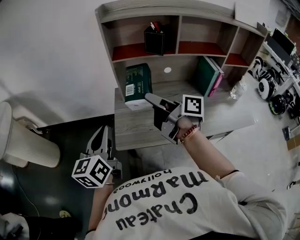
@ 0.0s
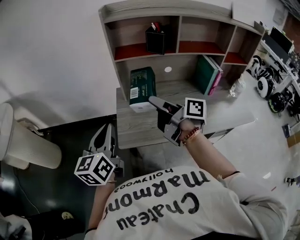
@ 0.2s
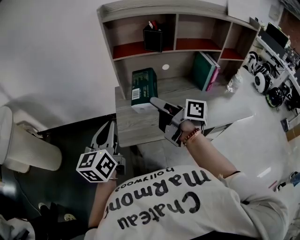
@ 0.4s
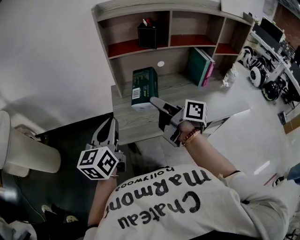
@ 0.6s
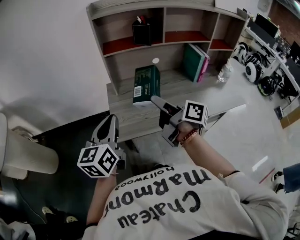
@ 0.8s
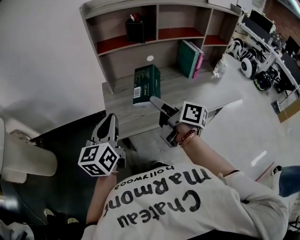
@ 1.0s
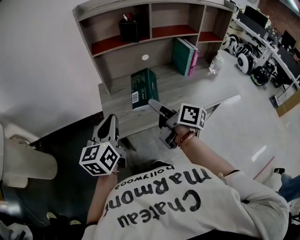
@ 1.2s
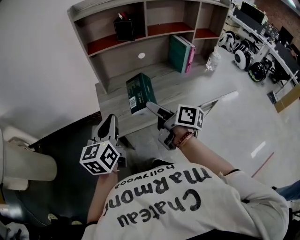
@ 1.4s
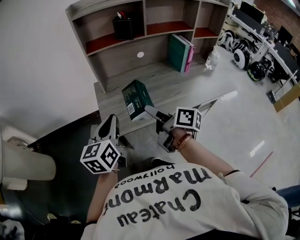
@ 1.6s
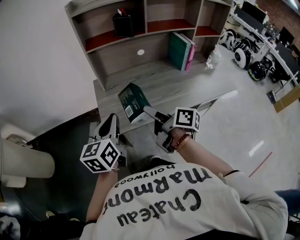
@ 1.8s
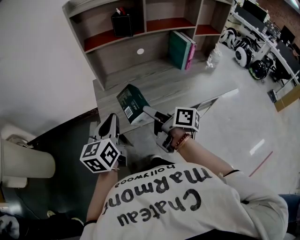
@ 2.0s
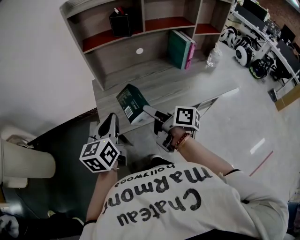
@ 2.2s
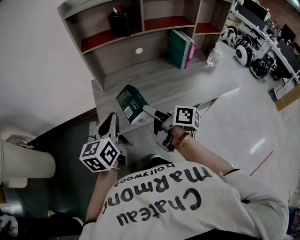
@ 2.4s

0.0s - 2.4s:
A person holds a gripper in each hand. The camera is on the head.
0.0s - 1.2s: The left gripper is displaced backward by about 5 cm. Meanwhile the right gripper travels backward and downward by approximately 15 cm, and swivels some 30 degrees.
1.2s - 2.4s: The right gripper shifts roughly 5 cm downward.

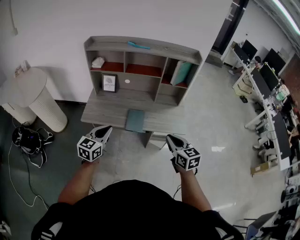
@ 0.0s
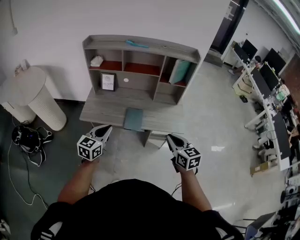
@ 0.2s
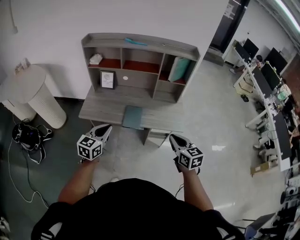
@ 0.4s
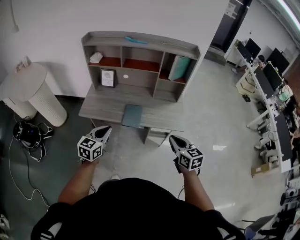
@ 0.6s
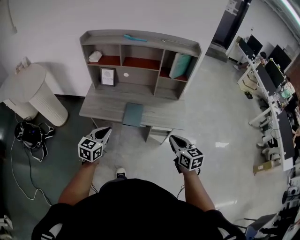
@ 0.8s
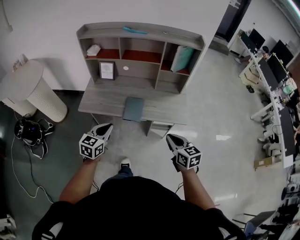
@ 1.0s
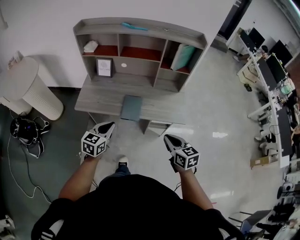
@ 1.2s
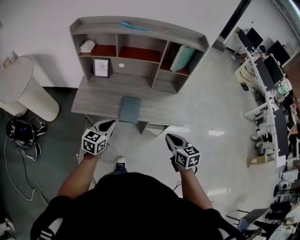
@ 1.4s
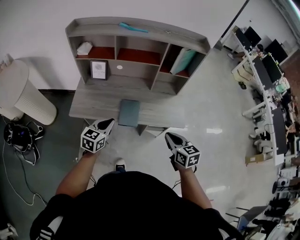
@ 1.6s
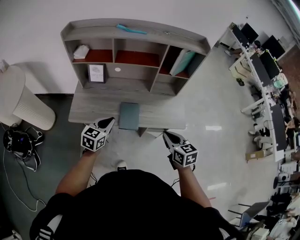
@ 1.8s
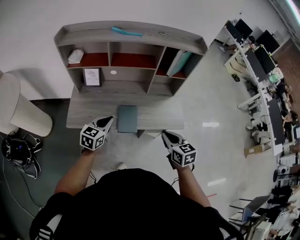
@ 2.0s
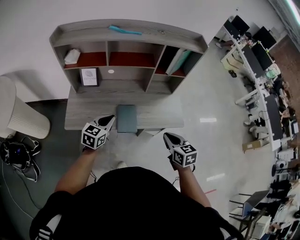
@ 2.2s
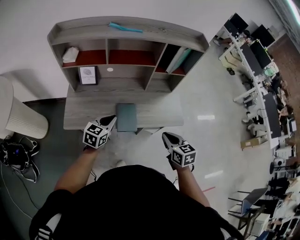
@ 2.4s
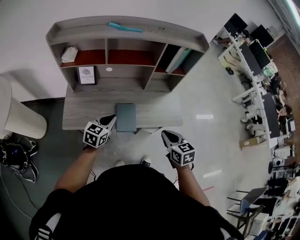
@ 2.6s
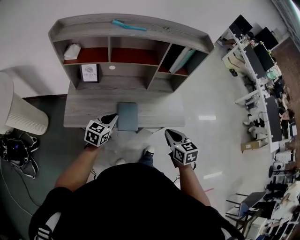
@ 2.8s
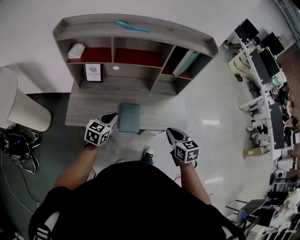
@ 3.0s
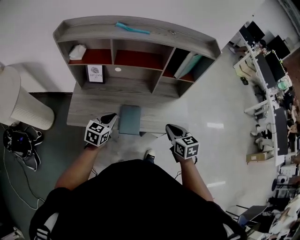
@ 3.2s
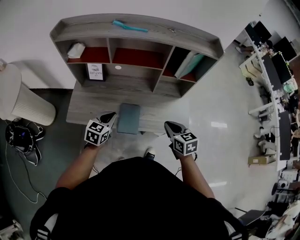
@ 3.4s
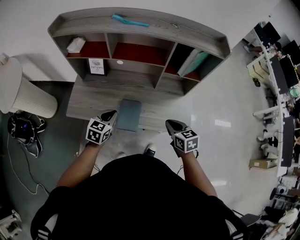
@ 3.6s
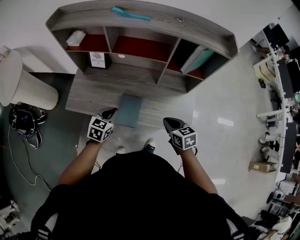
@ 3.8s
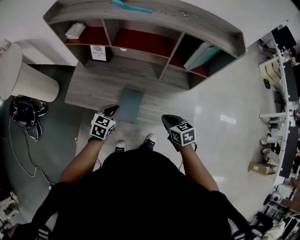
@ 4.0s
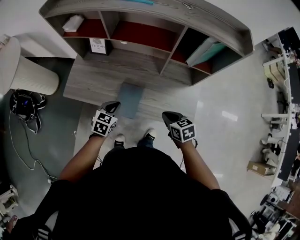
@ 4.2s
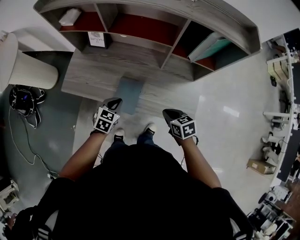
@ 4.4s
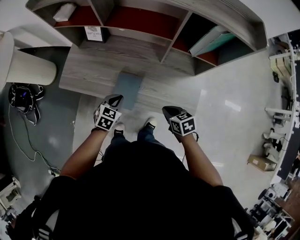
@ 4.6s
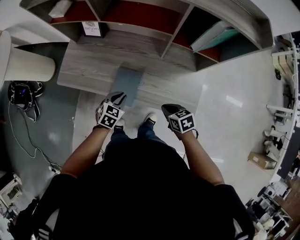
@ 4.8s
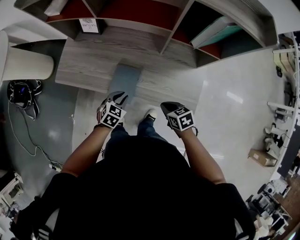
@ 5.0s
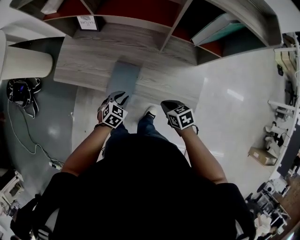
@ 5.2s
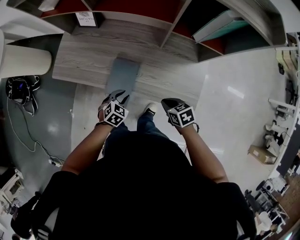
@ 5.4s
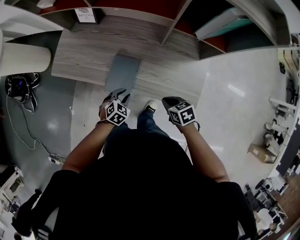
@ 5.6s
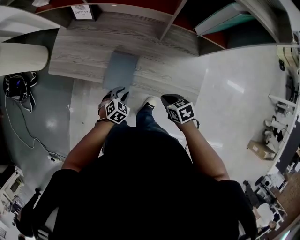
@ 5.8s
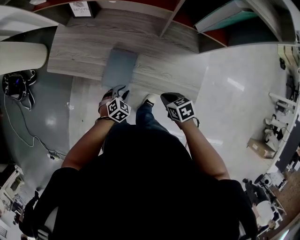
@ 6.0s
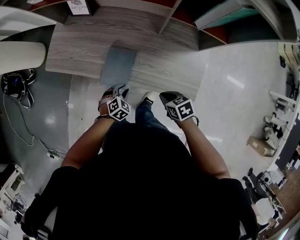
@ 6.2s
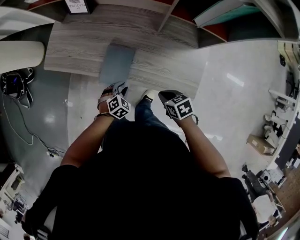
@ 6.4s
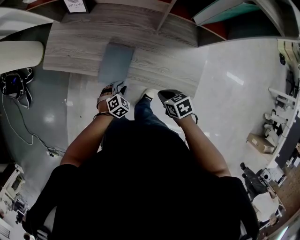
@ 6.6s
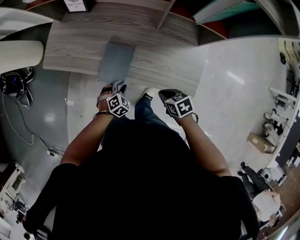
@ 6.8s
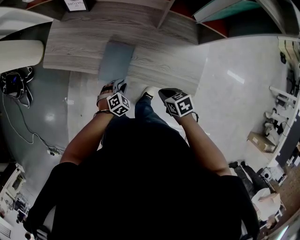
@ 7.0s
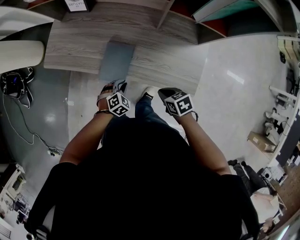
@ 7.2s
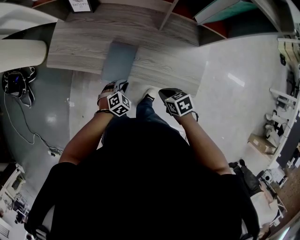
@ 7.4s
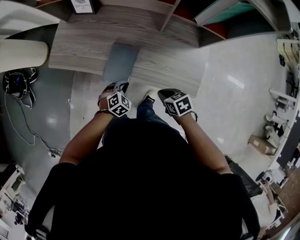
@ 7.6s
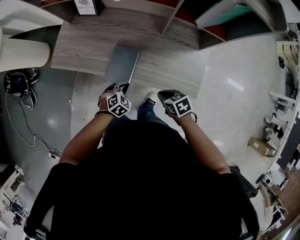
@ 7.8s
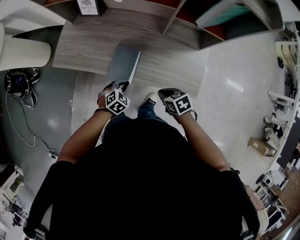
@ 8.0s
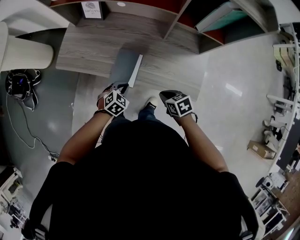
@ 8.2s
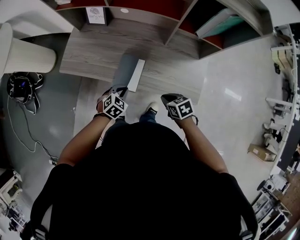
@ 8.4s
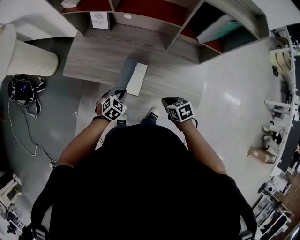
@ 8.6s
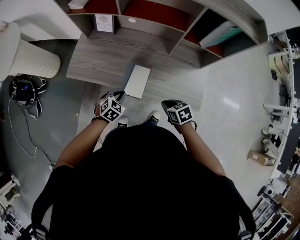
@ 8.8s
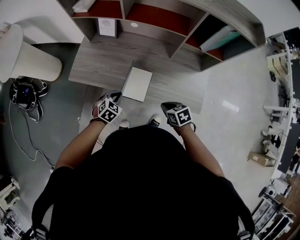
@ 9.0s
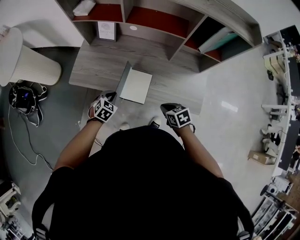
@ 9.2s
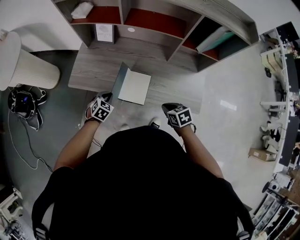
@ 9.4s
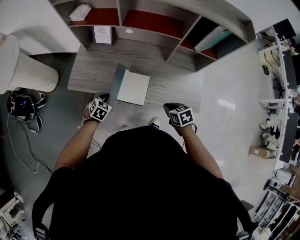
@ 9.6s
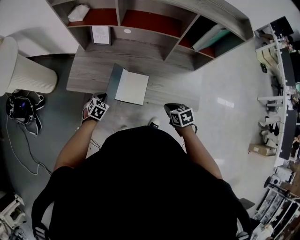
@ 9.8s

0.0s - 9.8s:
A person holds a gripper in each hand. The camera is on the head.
0.0s - 1.4s: The right gripper goes roughly 10 cm downward. Meanwhile the left gripper moves downward and forward, some 10 cm.
1.4s - 2.8s: The right gripper is displaced forward and to the left by about 10 cm. Meanwhile the left gripper moves forward, approximately 15 cm.
2.8s - 4.2s: The left gripper travels downward by approximately 10 cm, and rotates about 20 degrees, while the right gripper changes place by about 20 cm, and turns by about 30 degrees.
4.2s - 5.6s: The left gripper shifts approximately 15 cm downward and backward, rotates approximately 20 degrees, and opens up, while the right gripper moves downward, approximately 10 cm.
5.6s - 7.0s: The left gripper is displaced downward by roughly 5 cm.
7.0s - 8.4s: The right gripper is displaced upward by about 5 cm, while the left gripper heads upward, covering roughly 10 cm.
8.4s - 9.8s: The left gripper heads to the left and forward, covering roughly 20 cm.

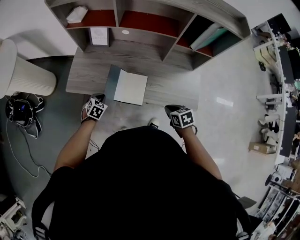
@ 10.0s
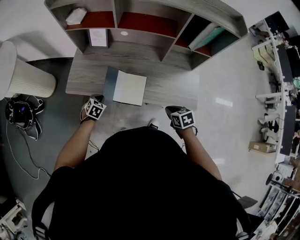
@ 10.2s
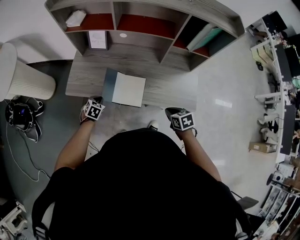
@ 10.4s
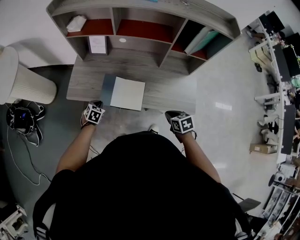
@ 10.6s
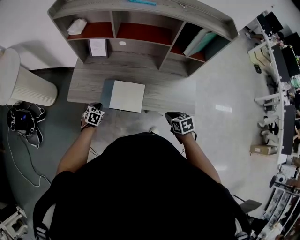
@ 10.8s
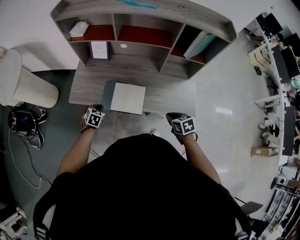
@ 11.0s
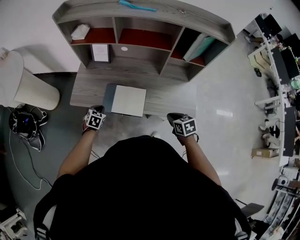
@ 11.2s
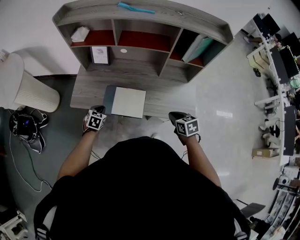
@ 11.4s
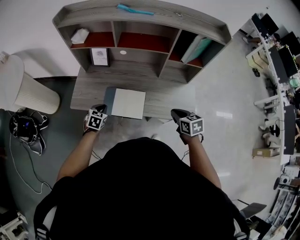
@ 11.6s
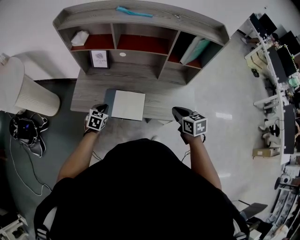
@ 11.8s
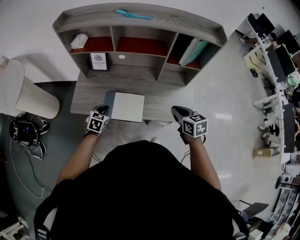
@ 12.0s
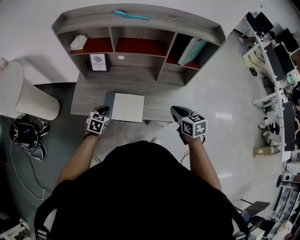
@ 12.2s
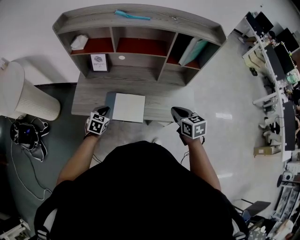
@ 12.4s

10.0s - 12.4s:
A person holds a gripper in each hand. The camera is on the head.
10.0s - 11.2s: The grippers make only small movements.
11.2s - 12.4s: The grippers both shift upward by about 10 cm.

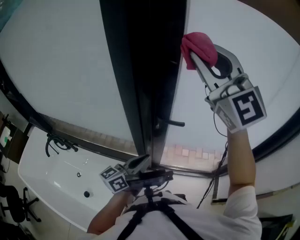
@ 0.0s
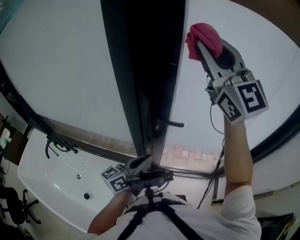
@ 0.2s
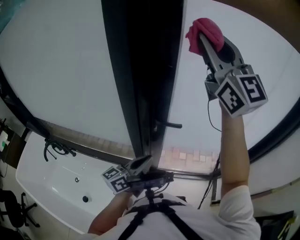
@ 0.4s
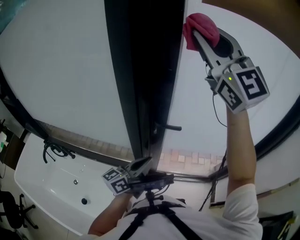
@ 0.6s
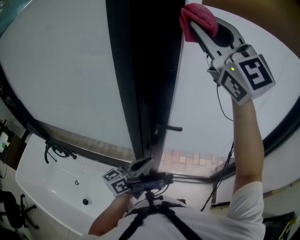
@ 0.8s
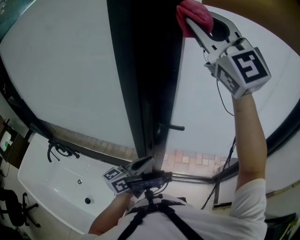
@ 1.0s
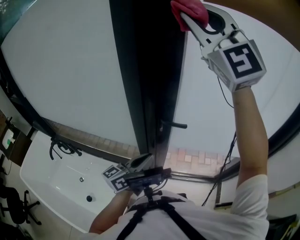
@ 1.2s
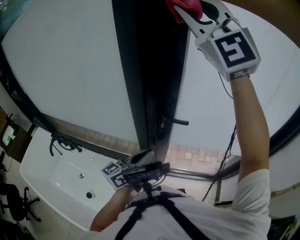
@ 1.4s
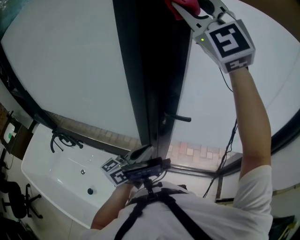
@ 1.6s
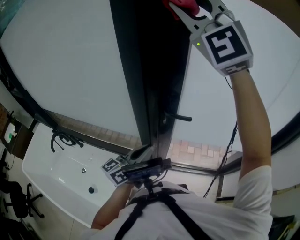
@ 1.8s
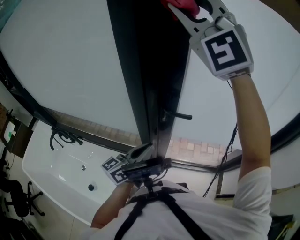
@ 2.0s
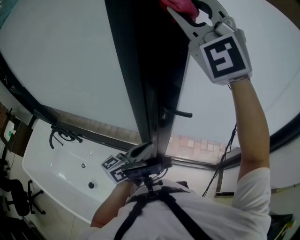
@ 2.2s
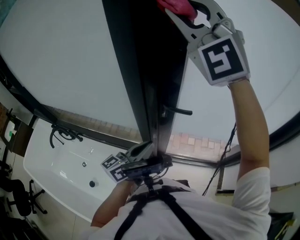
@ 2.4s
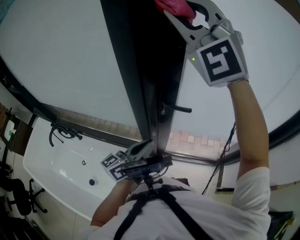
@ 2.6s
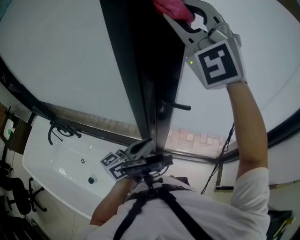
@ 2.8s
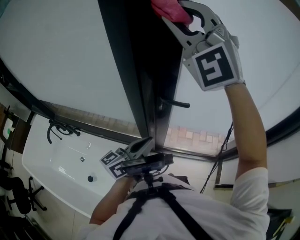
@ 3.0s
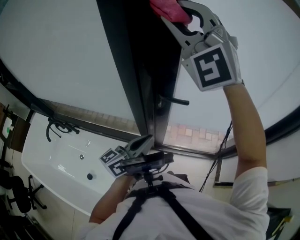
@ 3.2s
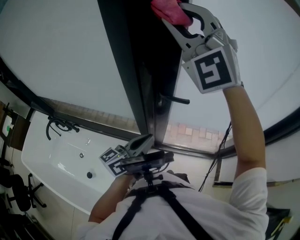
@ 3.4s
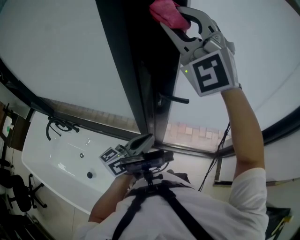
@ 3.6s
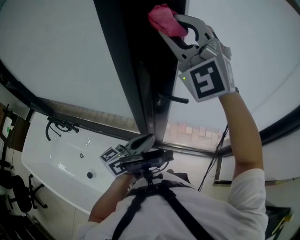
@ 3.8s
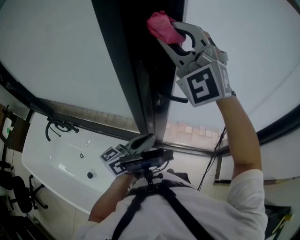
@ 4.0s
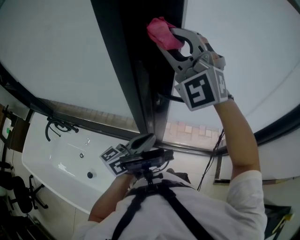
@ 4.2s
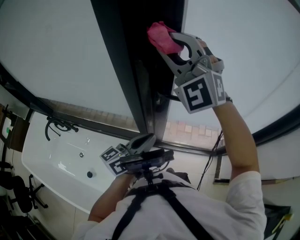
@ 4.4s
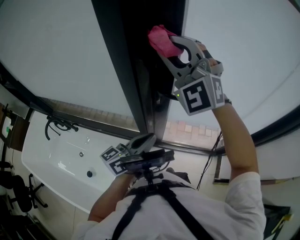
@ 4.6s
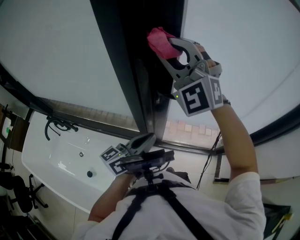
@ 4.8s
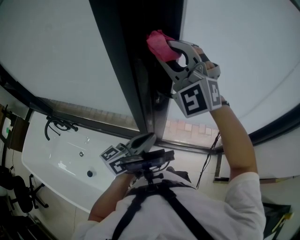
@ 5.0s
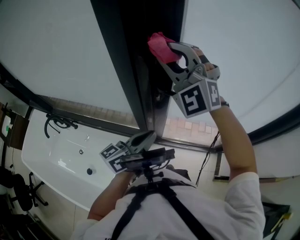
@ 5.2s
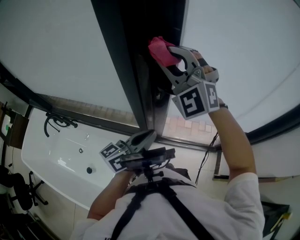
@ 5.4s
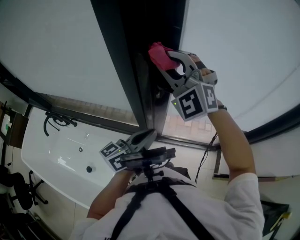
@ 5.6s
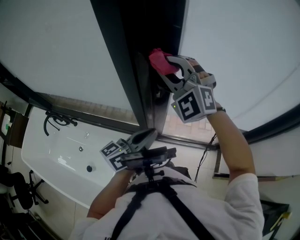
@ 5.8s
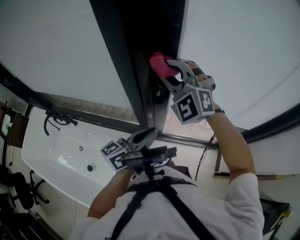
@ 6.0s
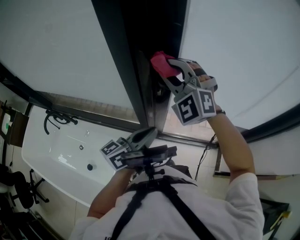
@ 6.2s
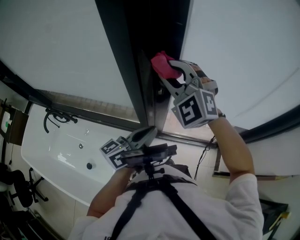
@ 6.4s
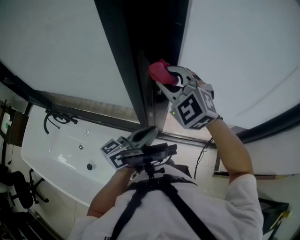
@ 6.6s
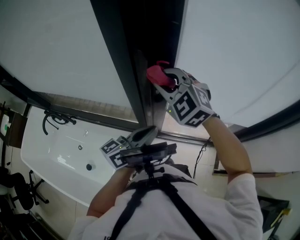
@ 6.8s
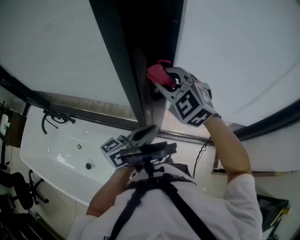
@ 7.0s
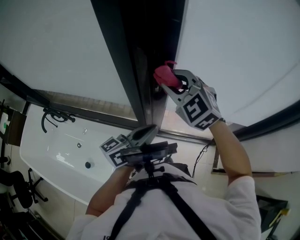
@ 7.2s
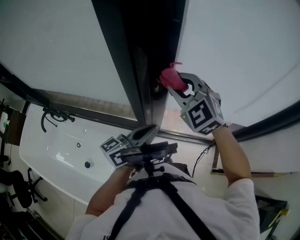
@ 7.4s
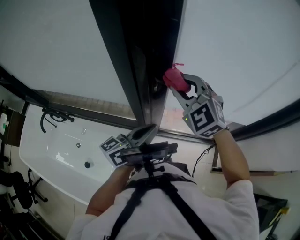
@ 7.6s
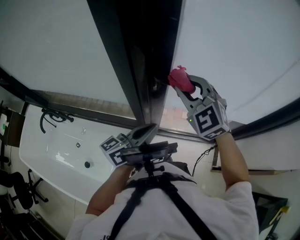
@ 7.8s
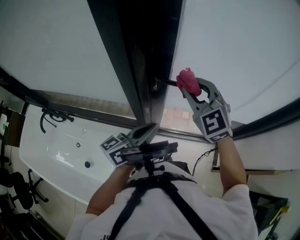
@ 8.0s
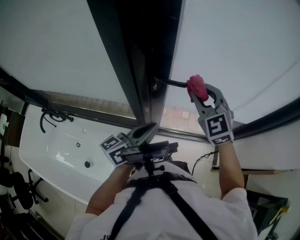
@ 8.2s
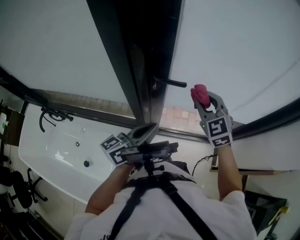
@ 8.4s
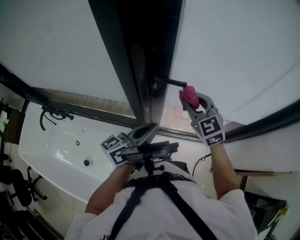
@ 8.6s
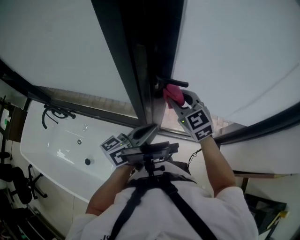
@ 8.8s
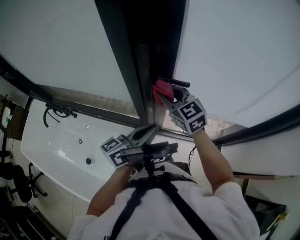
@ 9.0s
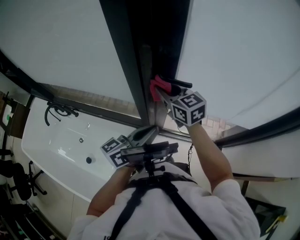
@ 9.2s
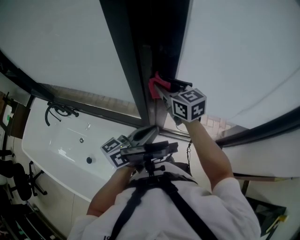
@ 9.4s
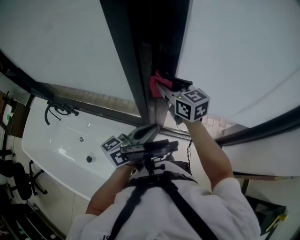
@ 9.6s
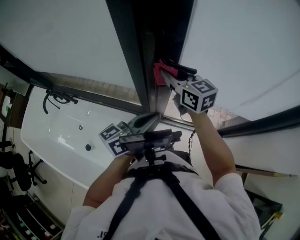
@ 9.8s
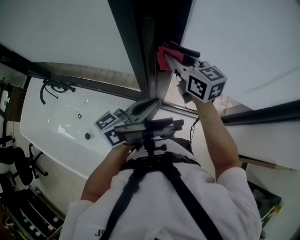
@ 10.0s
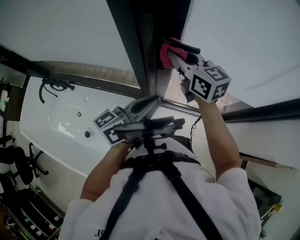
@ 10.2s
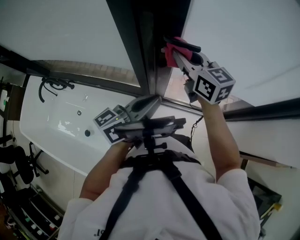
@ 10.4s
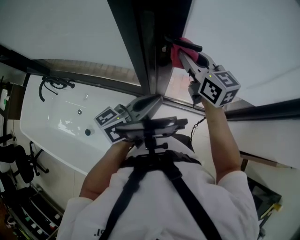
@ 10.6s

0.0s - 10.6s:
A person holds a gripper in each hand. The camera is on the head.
0.0s - 1.6s: The right gripper is displaced upward and to the left by roughly 10 cm, and turns by about 20 degrees.
1.6s - 3.0s: The right gripper is displaced downward by some 10 cm.
3.0s - 4.6s: The right gripper shifts some 10 cm downward.
4.6s - 6.0s: The right gripper moves downward, some 10 cm.
6.0s - 7.6s: The right gripper changes place by about 5 cm, and turns by about 20 degrees.
7.6s - 9.0s: The right gripper travels downward by approximately 10 cm, reaches approximately 10 cm to the right, then returns, and swivels some 30 degrees.
9.0s - 10.6s: The right gripper changes place by some 5 cm, and turns by roughly 20 degrees.
